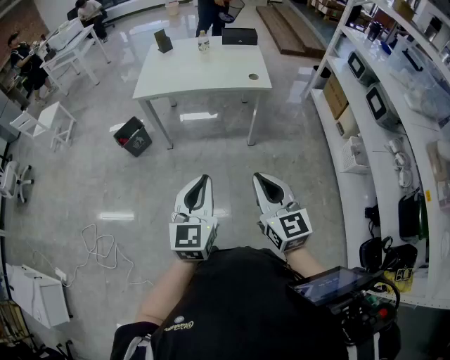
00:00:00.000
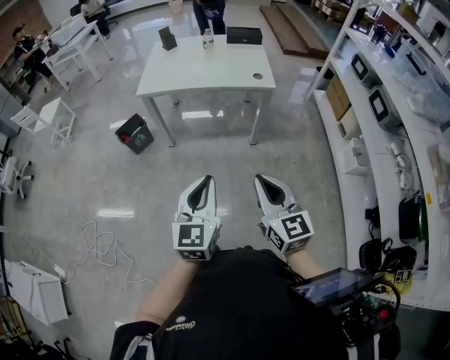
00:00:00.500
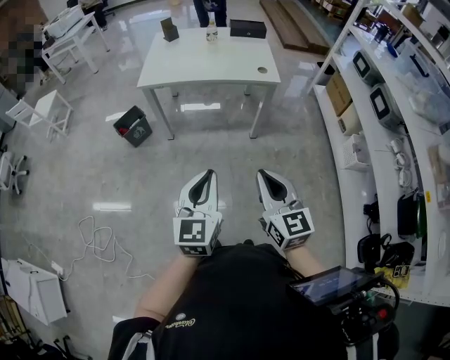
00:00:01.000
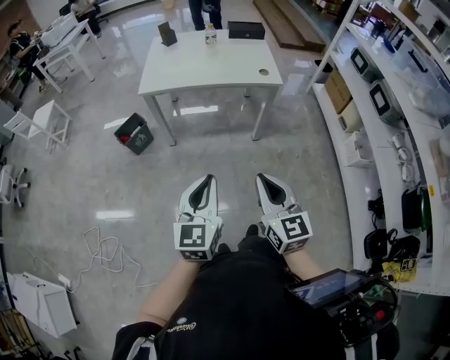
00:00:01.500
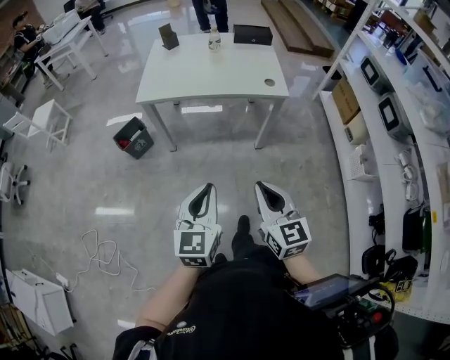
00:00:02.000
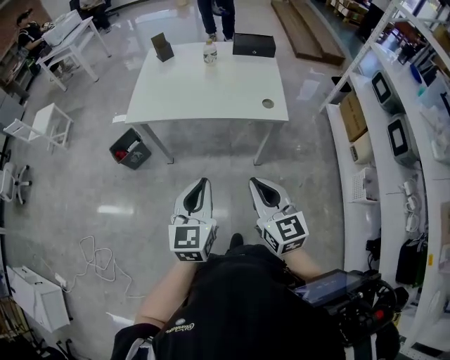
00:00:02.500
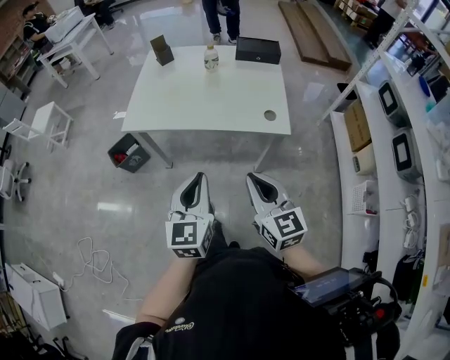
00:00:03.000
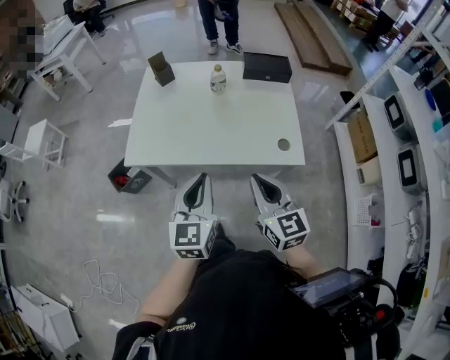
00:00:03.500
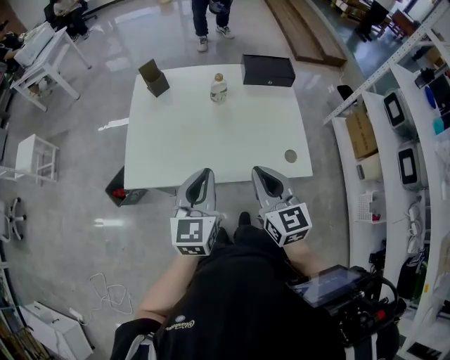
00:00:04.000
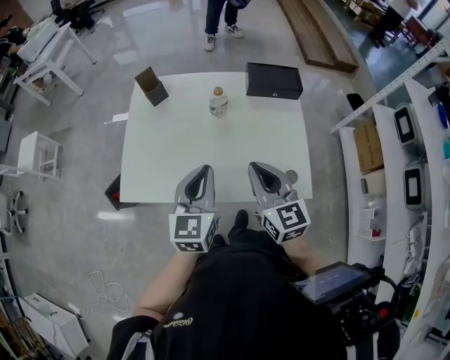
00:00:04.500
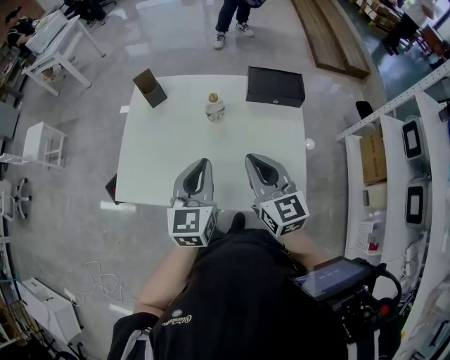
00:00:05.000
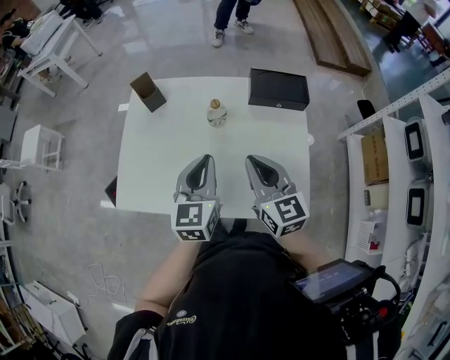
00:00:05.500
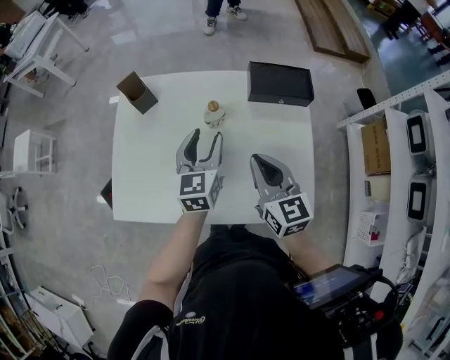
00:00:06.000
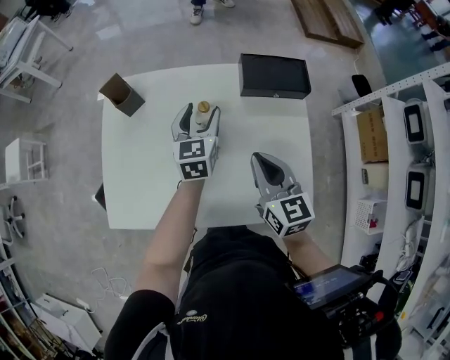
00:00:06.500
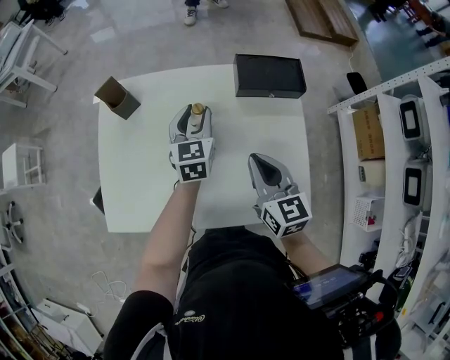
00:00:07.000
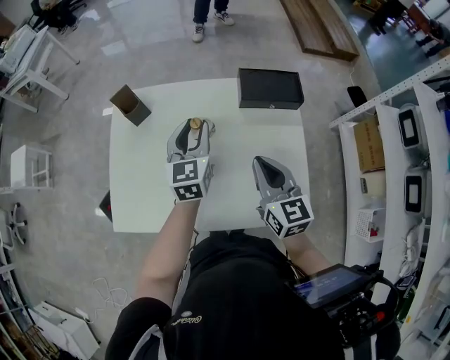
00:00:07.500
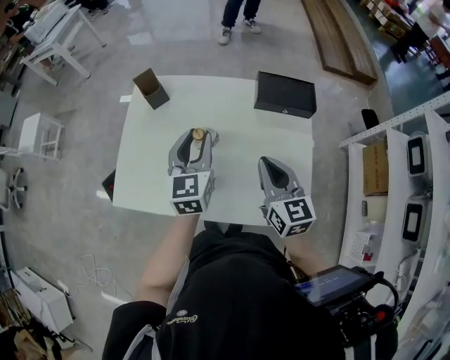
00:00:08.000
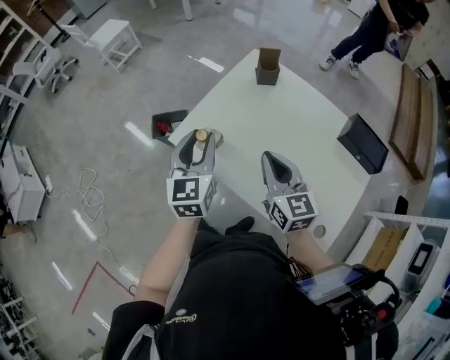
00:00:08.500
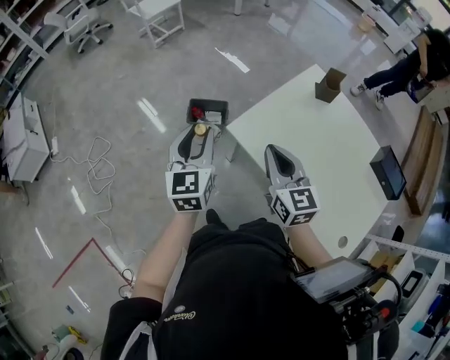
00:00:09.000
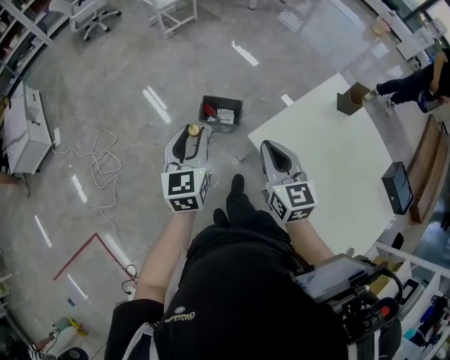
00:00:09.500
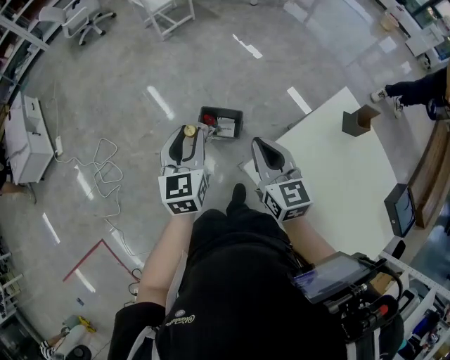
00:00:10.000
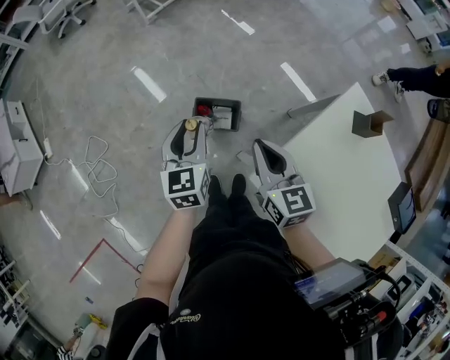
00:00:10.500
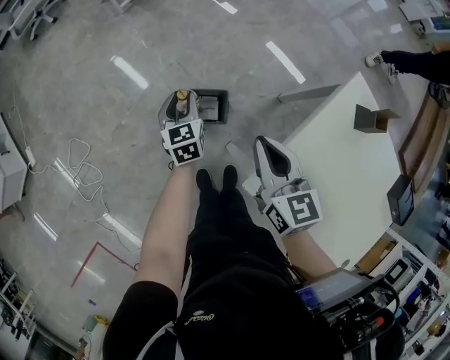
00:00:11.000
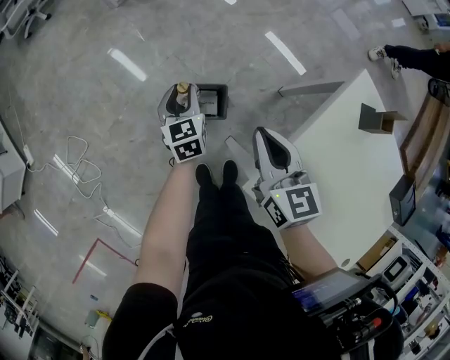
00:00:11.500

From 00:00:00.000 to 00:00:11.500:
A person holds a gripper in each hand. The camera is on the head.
From 00:00:00.000 to 00:00:02.000: The two grippers go about 10 cm forward and to the left.
From 00:00:02.000 to 00:00:04.000: Both grippers are carried forward, some 50 cm.
From 00:00:04.000 to 00:00:06.000: The two grippers go some 25 cm forward. The left gripper opens up.
From 00:00:07.500 to 00:00:09.500: The two grippers travel together, some 60 cm. The right gripper turns by about 50 degrees; the left gripper swivels some 50 degrees.
From 00:00:09.500 to 00:00:11.500: The right gripper moves forward and downward, roughly 25 cm. Meanwhile the left gripper goes some 40 cm forward and downward.

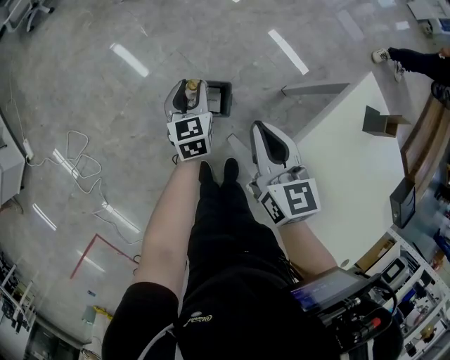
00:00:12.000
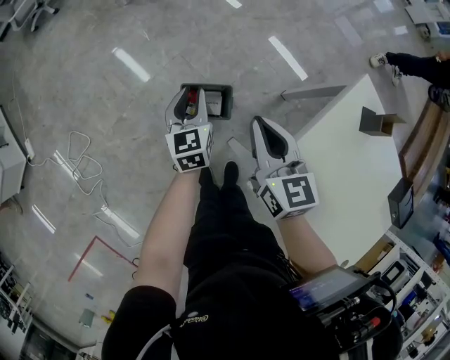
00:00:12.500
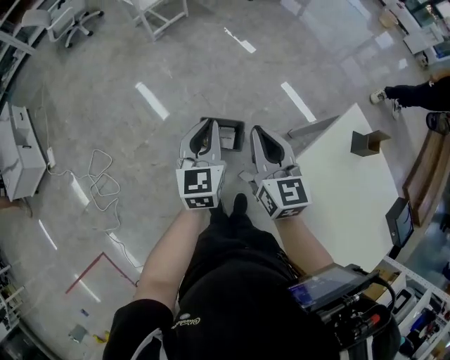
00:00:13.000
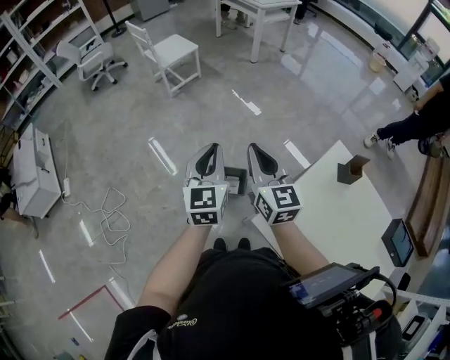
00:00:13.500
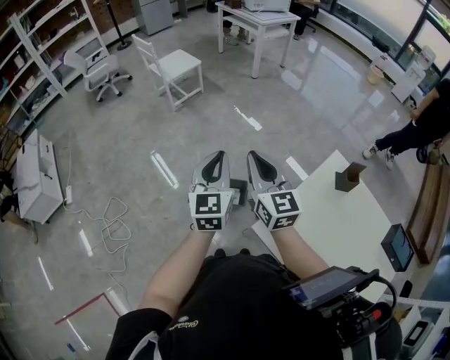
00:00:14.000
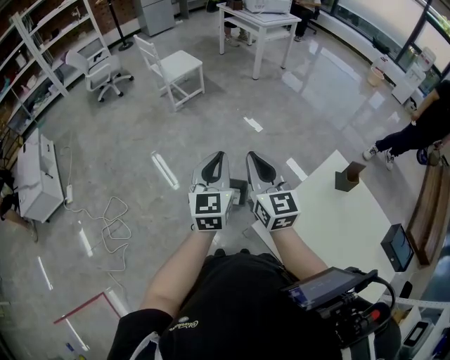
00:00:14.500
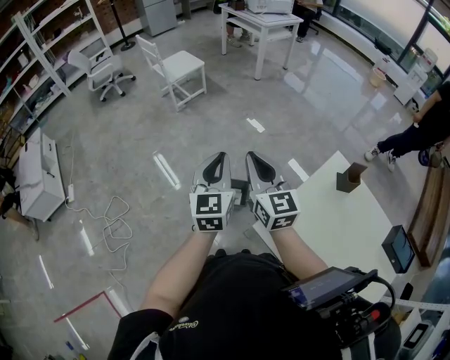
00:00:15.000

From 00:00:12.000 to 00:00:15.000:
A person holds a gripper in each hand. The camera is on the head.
From 00:00:12.000 to 00:00:13.500: The left gripper shifts roughly 35 cm upward, swivels some 20 degrees, and closes; the right gripper goes roughly 20 cm upward, and turns by roughly 20 degrees.
From 00:00:13.500 to 00:00:15.000: The grippers stay close to where they were, moving slightly.

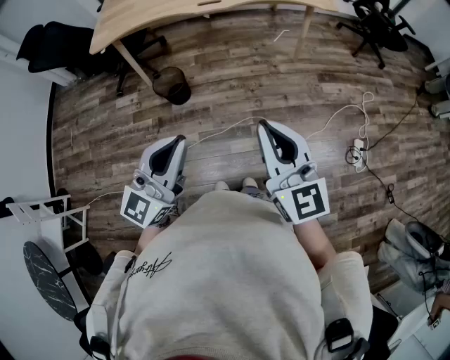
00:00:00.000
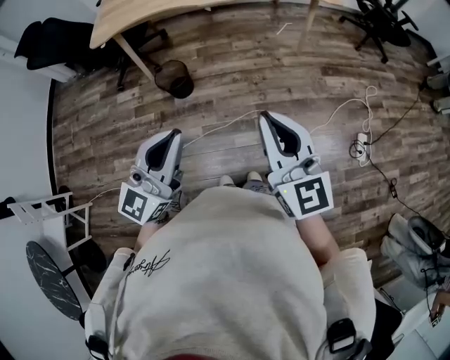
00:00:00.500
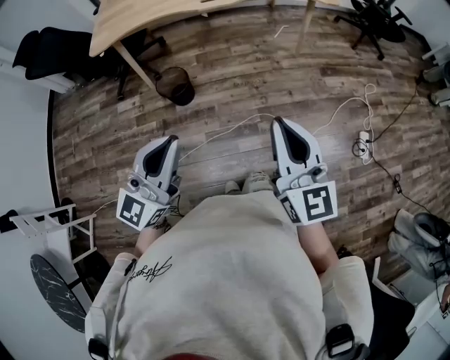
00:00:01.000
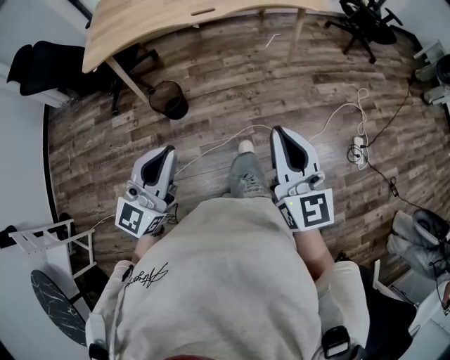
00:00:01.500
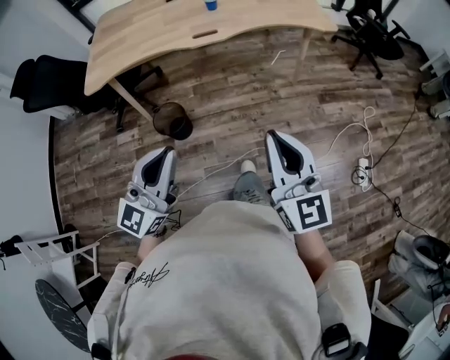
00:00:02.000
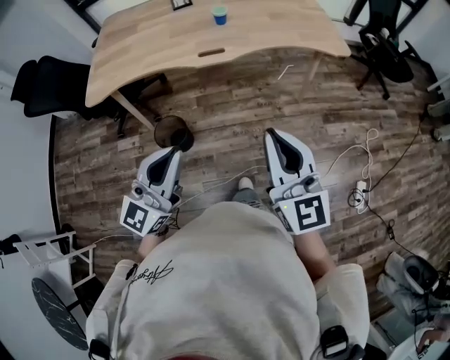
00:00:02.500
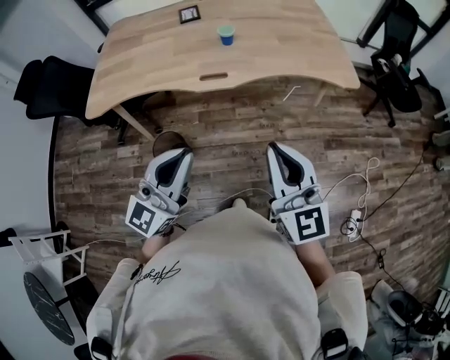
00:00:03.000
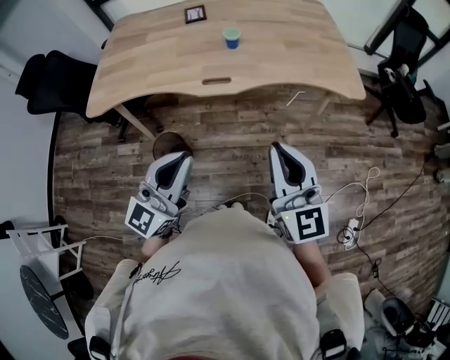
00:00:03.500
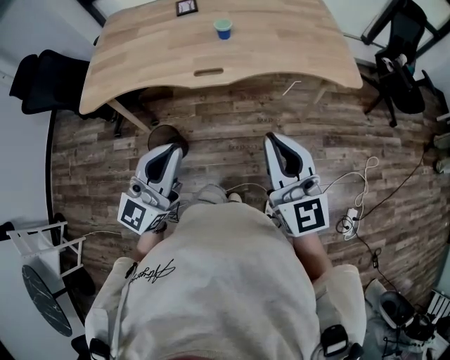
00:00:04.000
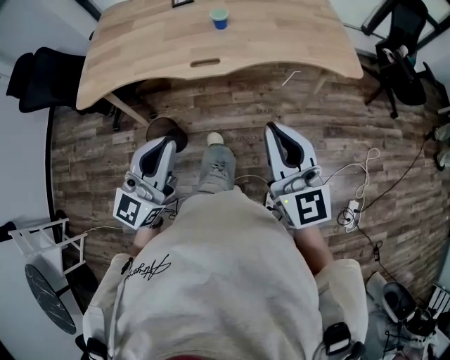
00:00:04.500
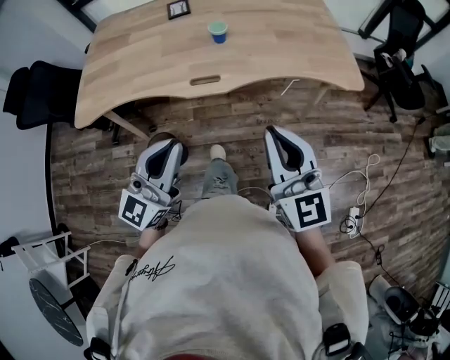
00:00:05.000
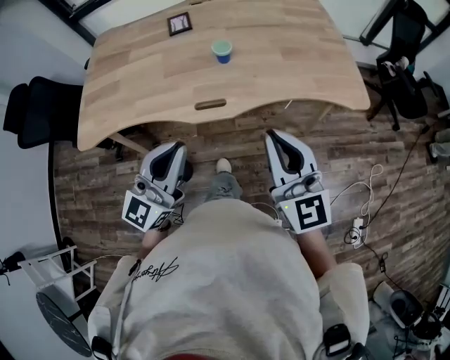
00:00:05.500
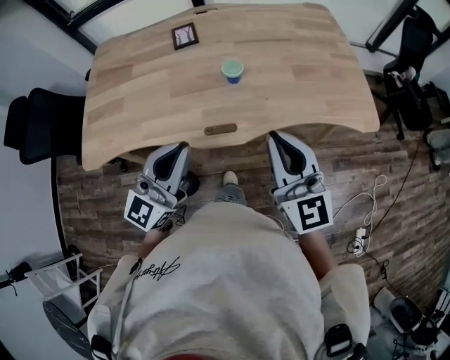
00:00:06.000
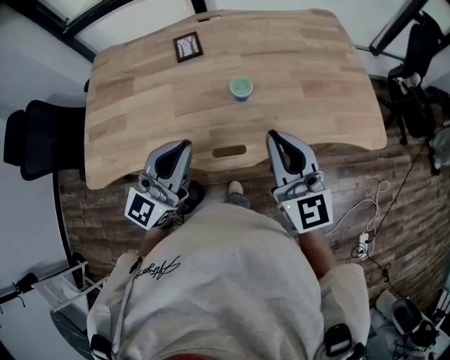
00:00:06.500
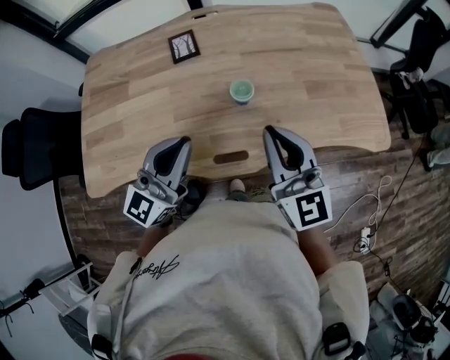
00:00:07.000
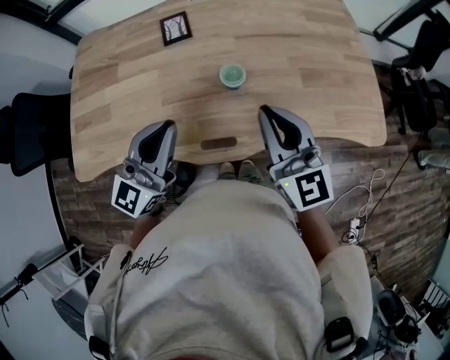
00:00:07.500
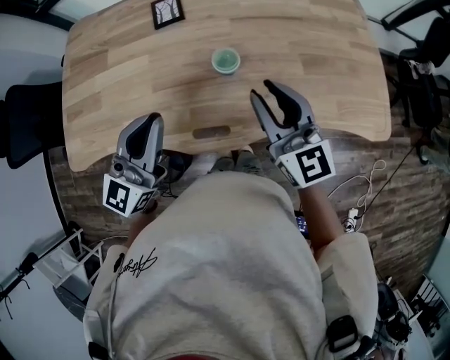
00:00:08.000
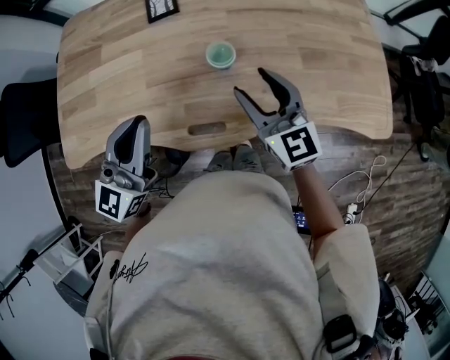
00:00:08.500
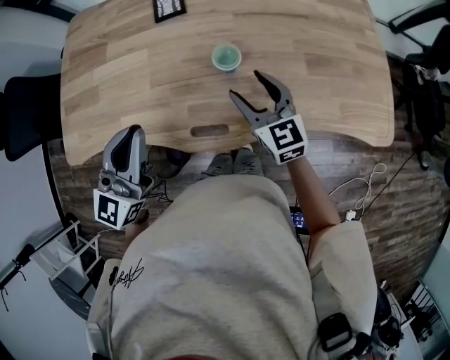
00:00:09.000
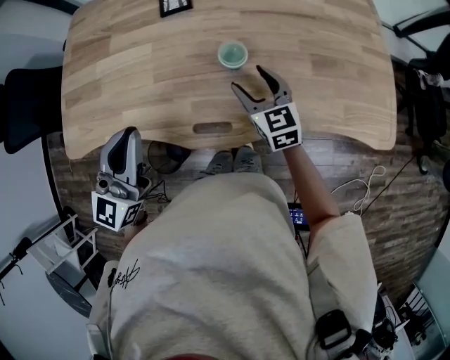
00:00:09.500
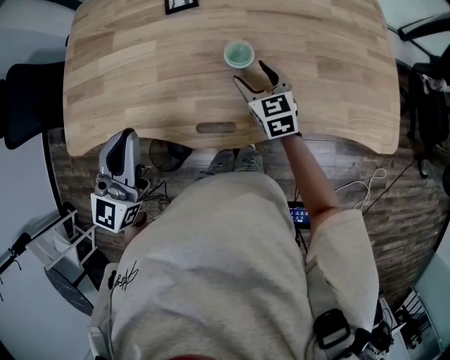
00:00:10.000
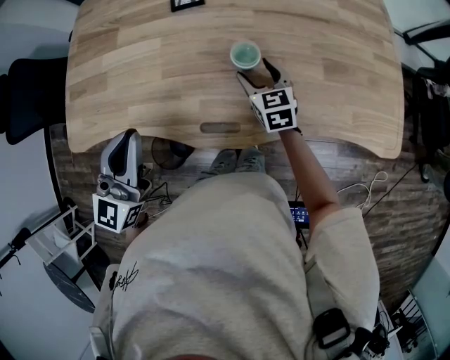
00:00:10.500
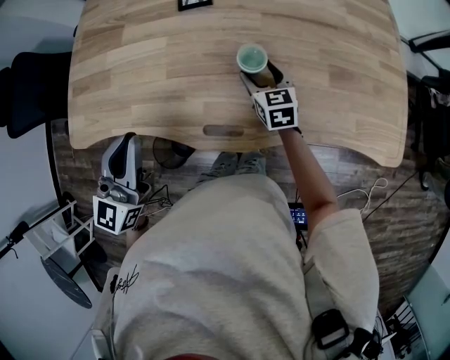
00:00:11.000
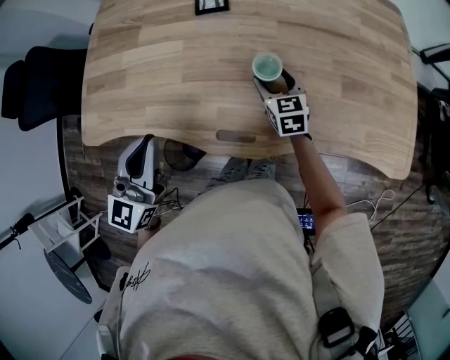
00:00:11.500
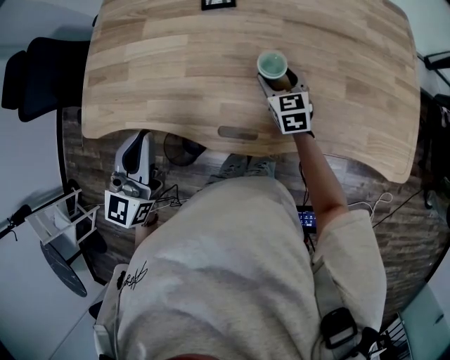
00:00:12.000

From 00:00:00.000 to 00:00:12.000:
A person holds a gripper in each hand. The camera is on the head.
From 00:00:00.000 to 00:00:02.000: The left gripper goes approximately 15 cm forward and to the left. Meanwhile the right gripper moves forward, some 15 cm.
From 00:00:02.000 to 00:00:04.000: Both grippers travel together forward, approximately 25 cm.
From 00:00:04.000 to 00:00:06.000: Both grippers travel together forward, about 25 cm.
From 00:00:06.000 to 00:00:08.000: Both grippers travel together forward, about 15 cm.
From 00:00:08.000 to 00:00:10.000: The right gripper goes about 20 cm downward and forward, turns by about 30 degrees, and opens; the left gripper is displaced to the left by some 5 cm.
From 00:00:10.000 to 00:00:12.000: The right gripper changes place by about 5 cm.
